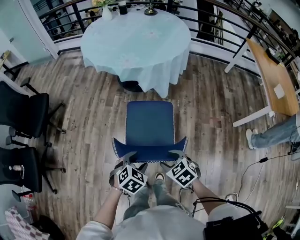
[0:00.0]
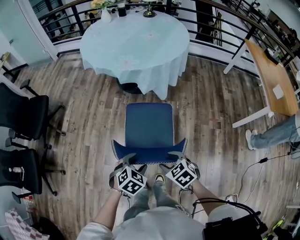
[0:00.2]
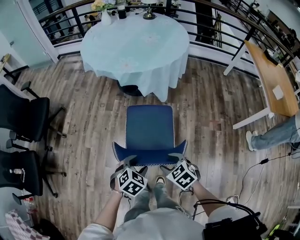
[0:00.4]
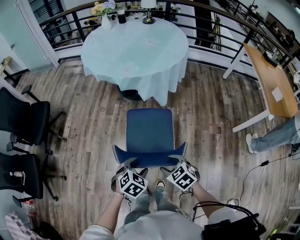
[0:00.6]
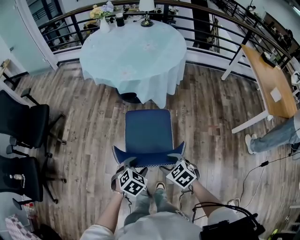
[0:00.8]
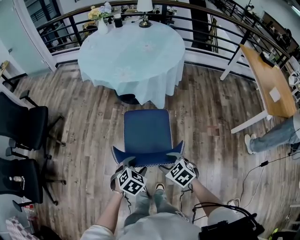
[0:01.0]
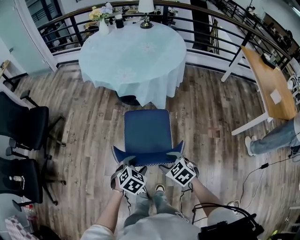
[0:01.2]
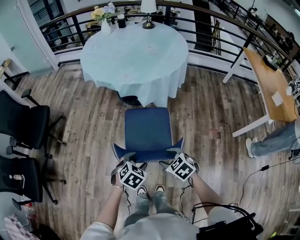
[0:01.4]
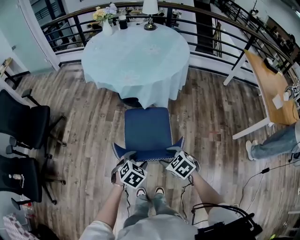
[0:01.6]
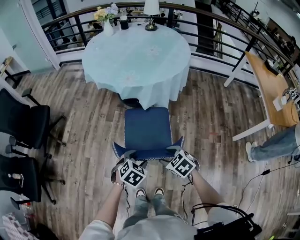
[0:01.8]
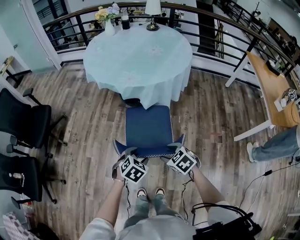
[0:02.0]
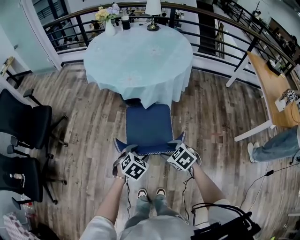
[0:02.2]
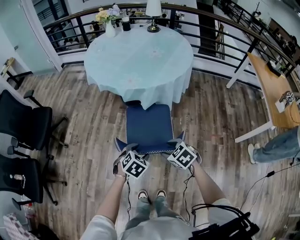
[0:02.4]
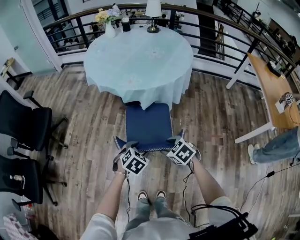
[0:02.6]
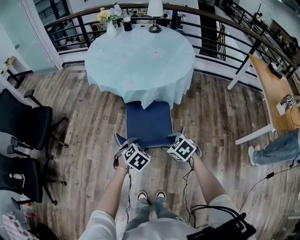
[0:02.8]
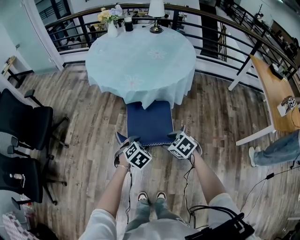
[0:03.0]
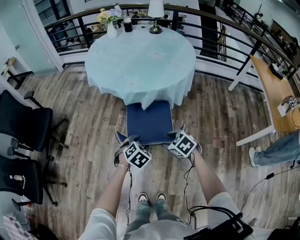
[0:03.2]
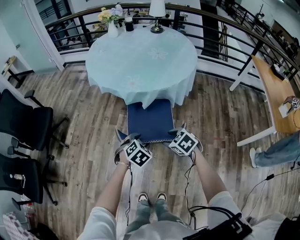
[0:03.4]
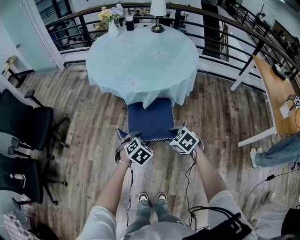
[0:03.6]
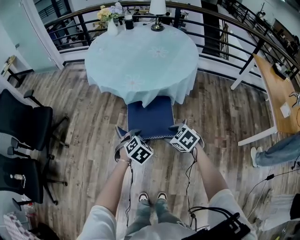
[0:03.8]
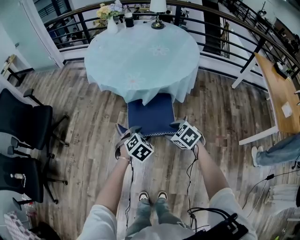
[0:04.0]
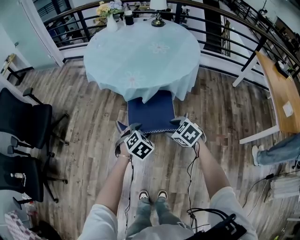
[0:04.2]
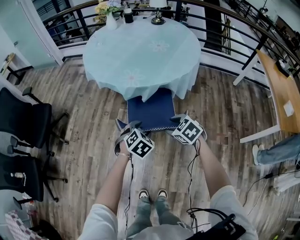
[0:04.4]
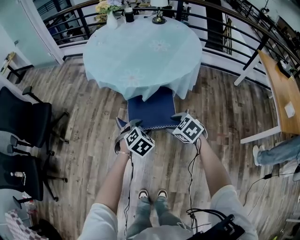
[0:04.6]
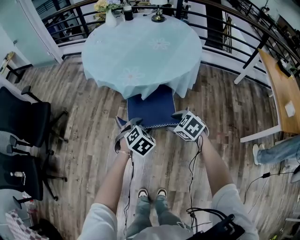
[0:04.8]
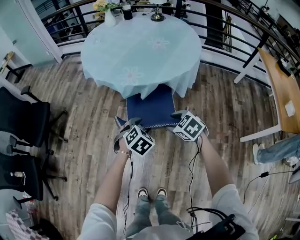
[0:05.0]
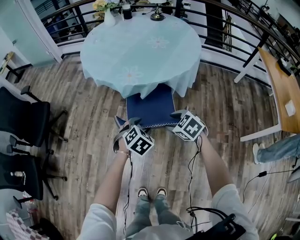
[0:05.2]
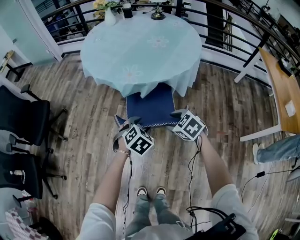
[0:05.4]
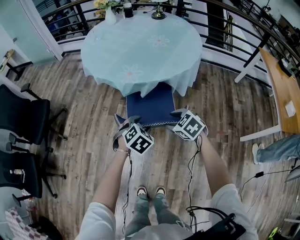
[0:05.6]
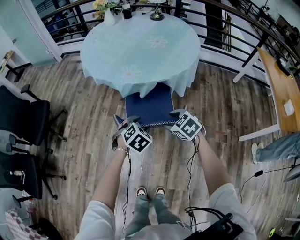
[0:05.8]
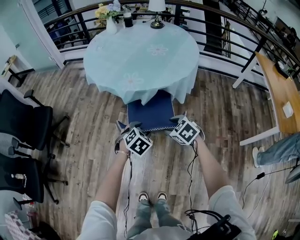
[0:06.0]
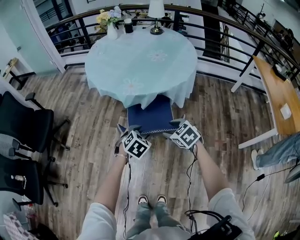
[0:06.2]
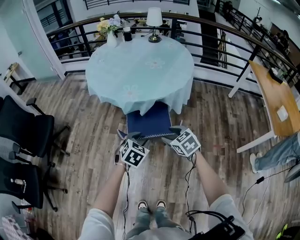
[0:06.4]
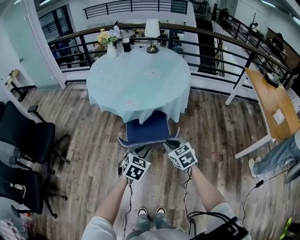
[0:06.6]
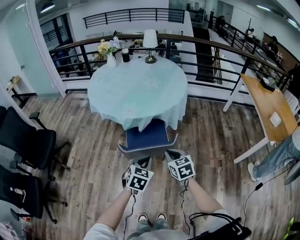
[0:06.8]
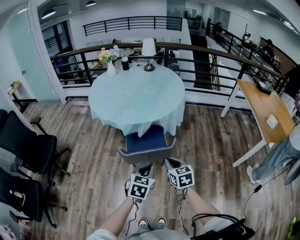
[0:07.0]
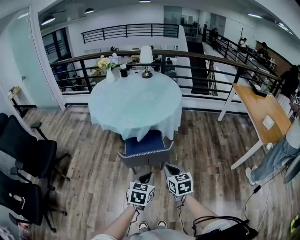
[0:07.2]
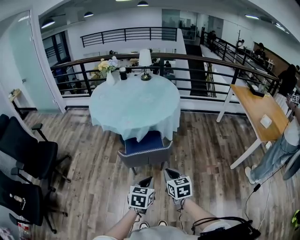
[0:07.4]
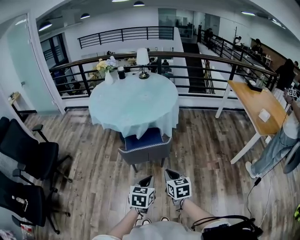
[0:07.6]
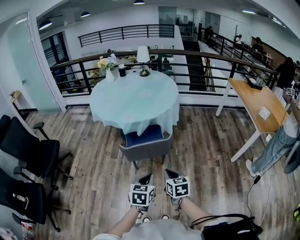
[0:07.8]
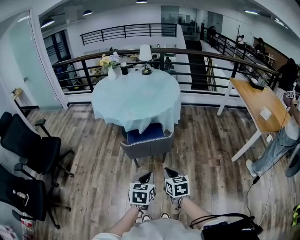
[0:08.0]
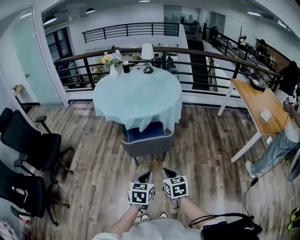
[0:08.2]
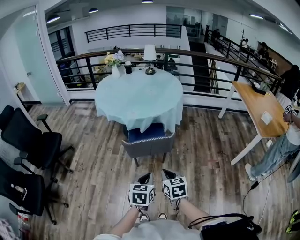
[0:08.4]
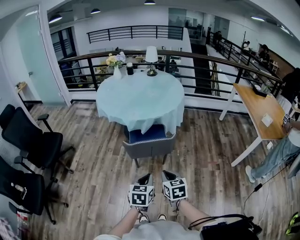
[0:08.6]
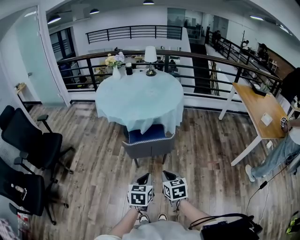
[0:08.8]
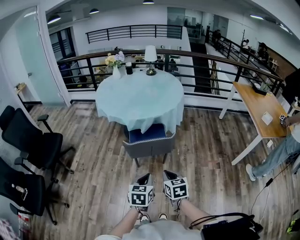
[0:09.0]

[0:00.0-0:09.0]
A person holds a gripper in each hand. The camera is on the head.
0:00.0 to 0:01.6: The grippers both shift forward by about 10 cm.
0:01.6 to 0:03.0: Both grippers move forward, approximately 10 cm.
0:03.0 to 0:04.4: The two grippers go about 10 cm forward.
0:04.4 to 0:06.0: The grippers make only small movements.
0:06.0 to 0:07.6: The two grippers go approximately 25 cm backward and upward. The left gripper changes its angle by some 40 degrees, and closes up, while the right gripper rotates about 50 degrees, and closes its fingers.
0:07.6 to 0:09.0: The grippers make only small movements.

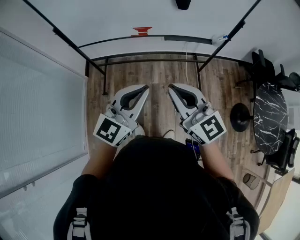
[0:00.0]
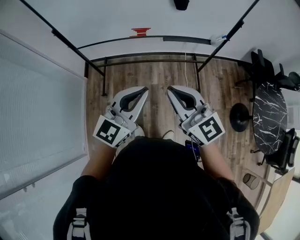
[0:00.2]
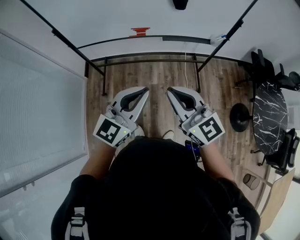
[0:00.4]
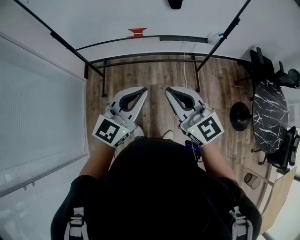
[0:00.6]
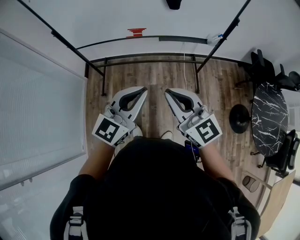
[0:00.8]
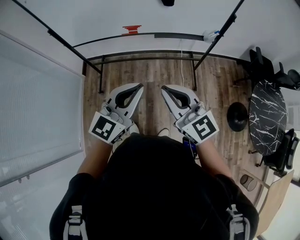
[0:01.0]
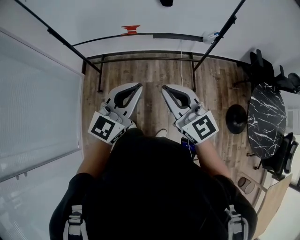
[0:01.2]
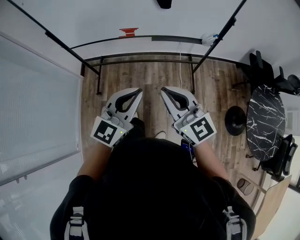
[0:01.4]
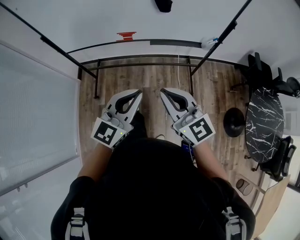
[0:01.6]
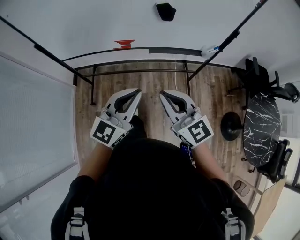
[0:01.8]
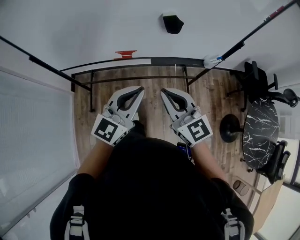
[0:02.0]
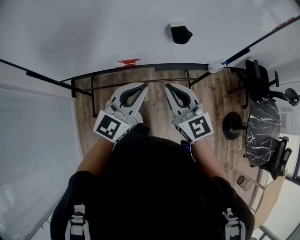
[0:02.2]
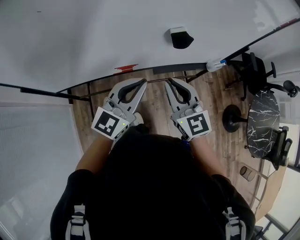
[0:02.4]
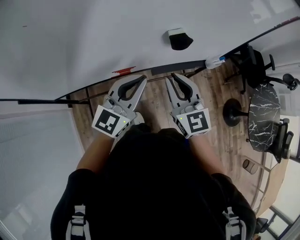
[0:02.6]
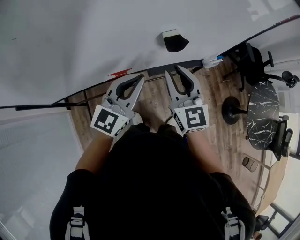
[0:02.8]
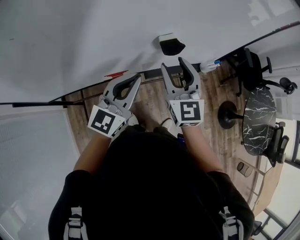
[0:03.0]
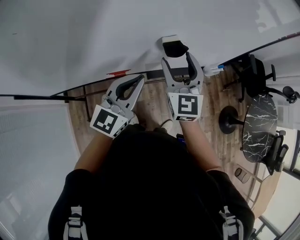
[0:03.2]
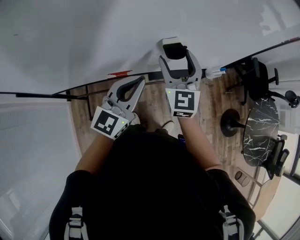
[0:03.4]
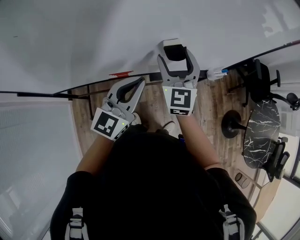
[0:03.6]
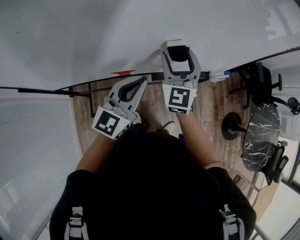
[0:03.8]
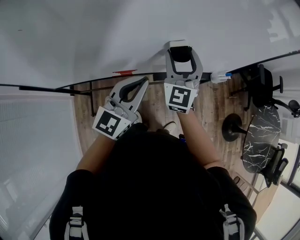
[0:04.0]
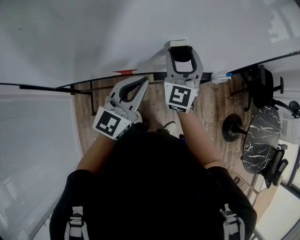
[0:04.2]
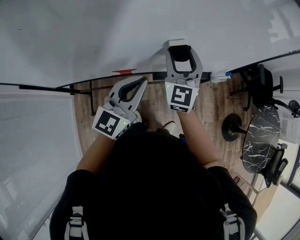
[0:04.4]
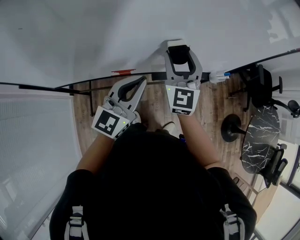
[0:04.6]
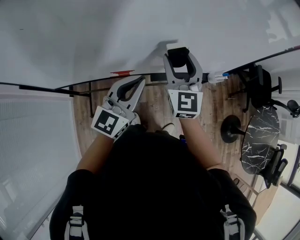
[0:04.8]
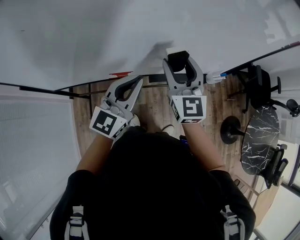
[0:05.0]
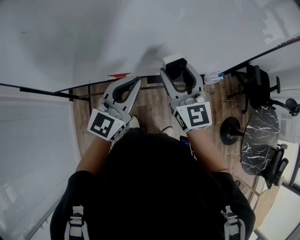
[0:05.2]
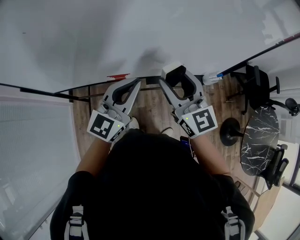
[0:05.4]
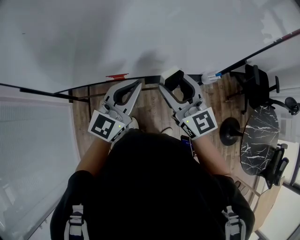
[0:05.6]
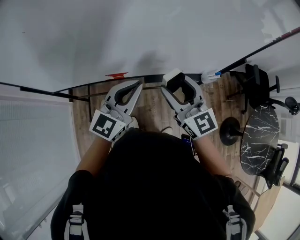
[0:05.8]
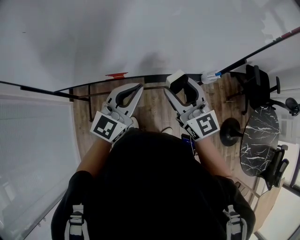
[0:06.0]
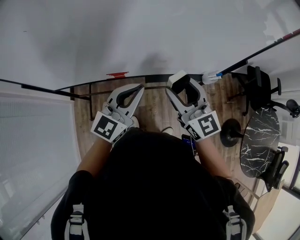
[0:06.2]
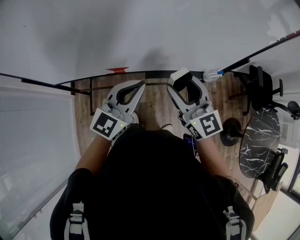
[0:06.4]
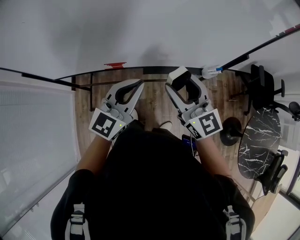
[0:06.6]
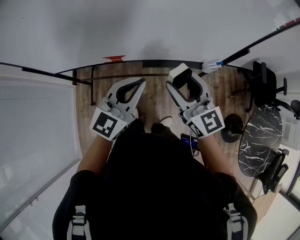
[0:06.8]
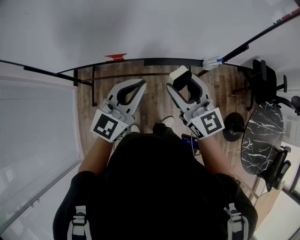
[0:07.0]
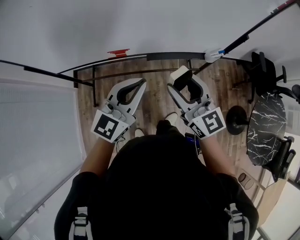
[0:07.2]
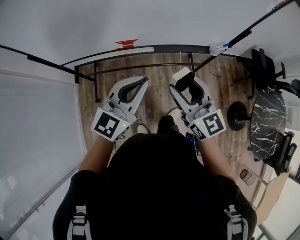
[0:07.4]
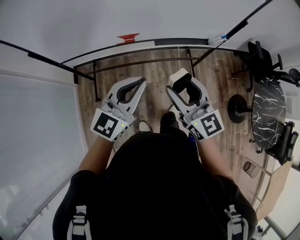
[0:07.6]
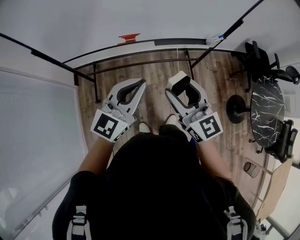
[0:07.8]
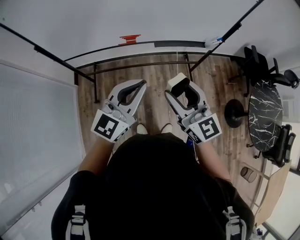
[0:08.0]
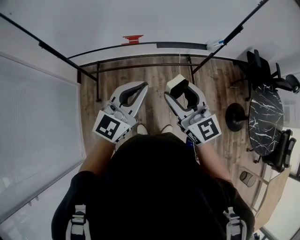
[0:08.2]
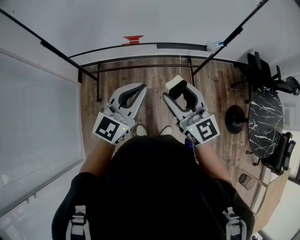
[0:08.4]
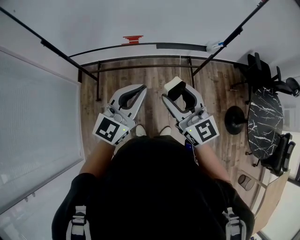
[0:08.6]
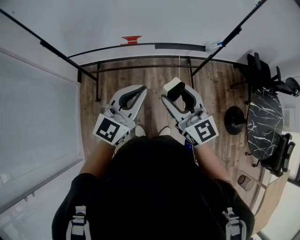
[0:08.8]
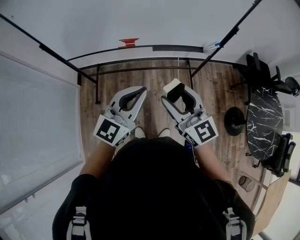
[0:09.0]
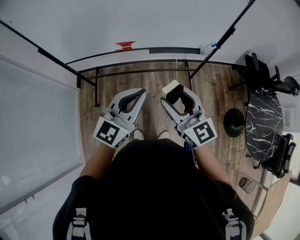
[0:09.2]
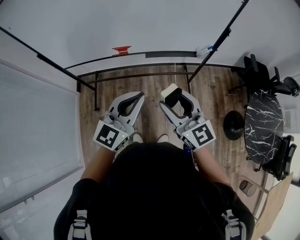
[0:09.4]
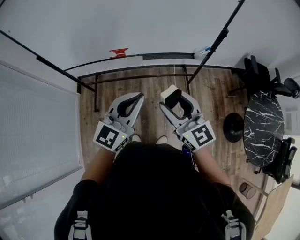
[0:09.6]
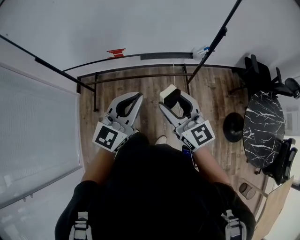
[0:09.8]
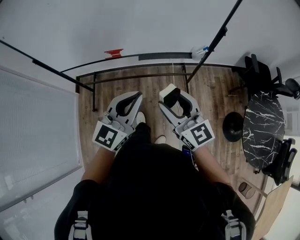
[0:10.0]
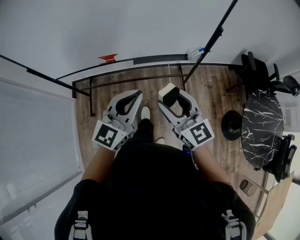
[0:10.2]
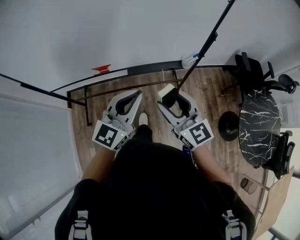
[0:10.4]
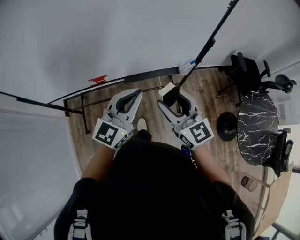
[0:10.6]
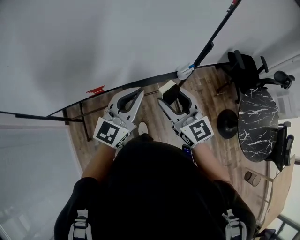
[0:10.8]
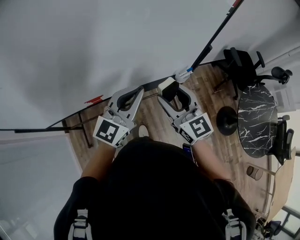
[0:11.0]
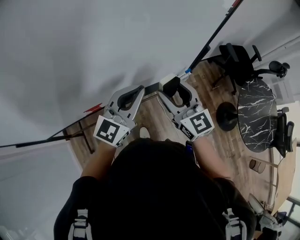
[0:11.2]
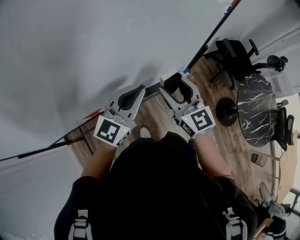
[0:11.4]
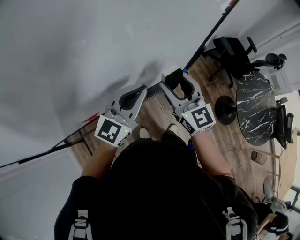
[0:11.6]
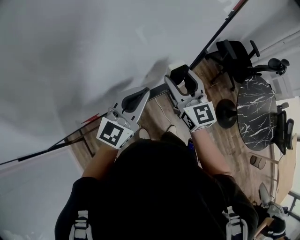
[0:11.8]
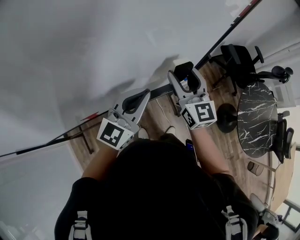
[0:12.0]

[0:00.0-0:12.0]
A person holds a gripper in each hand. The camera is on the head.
0:00.0 to 0:01.6: The grippers both shift to the right by some 10 cm.
0:01.6 to 0:03.0: The two grippers go roughly 40 cm forward. The right gripper changes its angle by roughly 40 degrees, and opens its fingers.
0:03.0 to 0:04.4: The right gripper shifts about 5 cm forward.
0:04.4 to 0:06.0: The left gripper travels to the right by approximately 5 cm; the right gripper heads backward and to the right, covering about 15 cm, and turns by roughly 40 degrees.
0:06.0 to 0:07.6: Both grippers move backward, approximately 20 cm.
0:07.6 to 0:09.0: The grippers both shift backward by roughly 5 cm.
0:09.0 to 0:10.4: The left gripper travels forward and to the right by roughly 20 cm, while the right gripper travels to the right and forward by approximately 20 cm.
0:10.4 to 0:12.0: Both grippers travel together forward, about 30 cm. The right gripper swivels some 30 degrees.

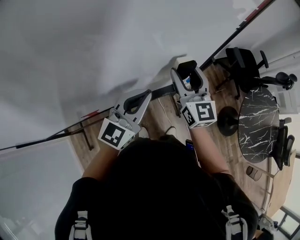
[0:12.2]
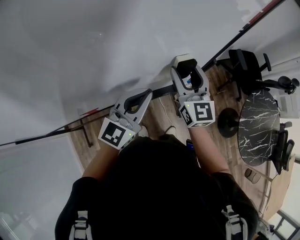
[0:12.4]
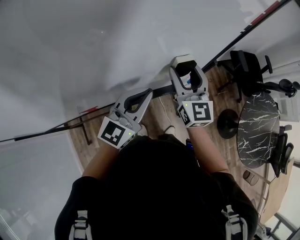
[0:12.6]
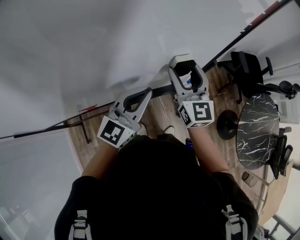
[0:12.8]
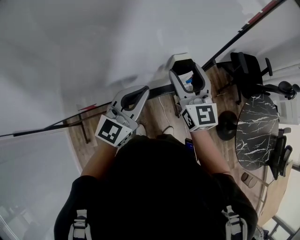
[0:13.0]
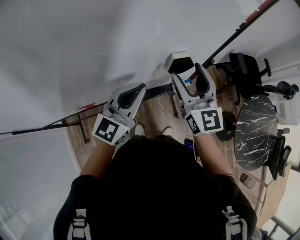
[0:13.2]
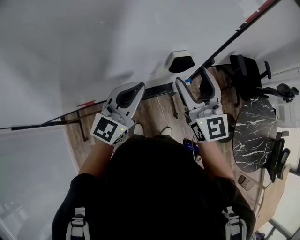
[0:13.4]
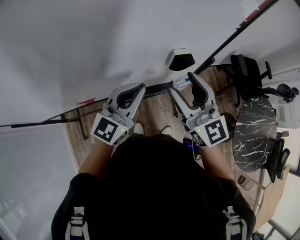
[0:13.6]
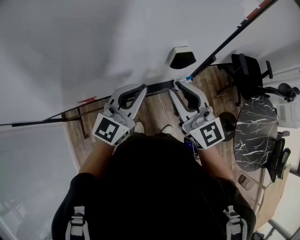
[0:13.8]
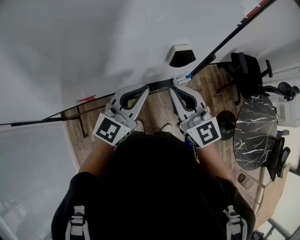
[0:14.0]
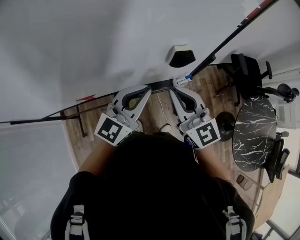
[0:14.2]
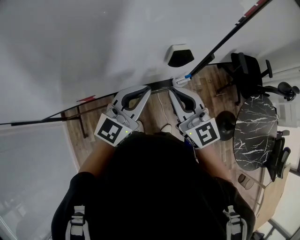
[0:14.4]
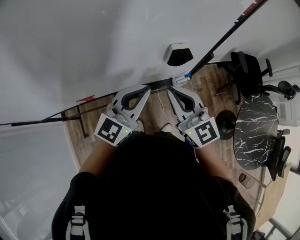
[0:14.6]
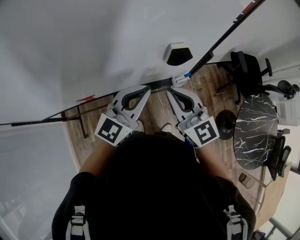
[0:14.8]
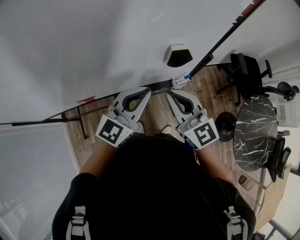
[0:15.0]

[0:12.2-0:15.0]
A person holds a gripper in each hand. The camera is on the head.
0:12.2 to 0:13.6: The right gripper goes about 10 cm backward and upward, and swivels approximately 20 degrees.
0:13.6 to 0:15.0: The right gripper travels downward by about 5 cm, and closes.
